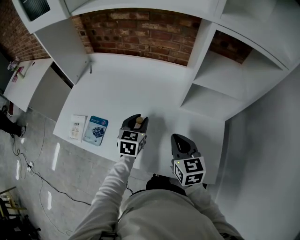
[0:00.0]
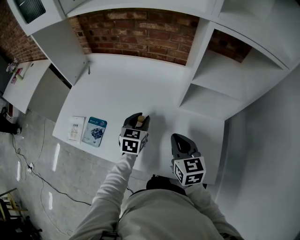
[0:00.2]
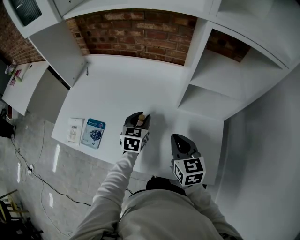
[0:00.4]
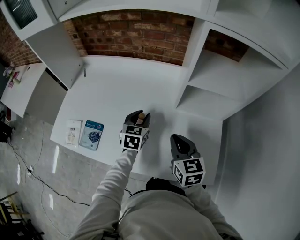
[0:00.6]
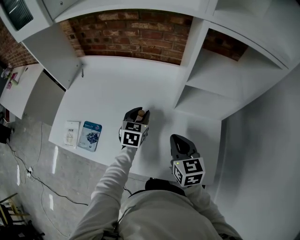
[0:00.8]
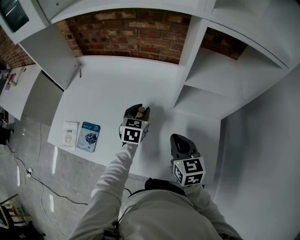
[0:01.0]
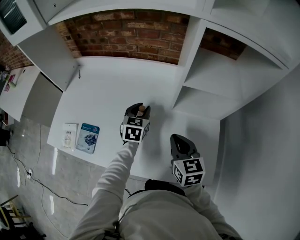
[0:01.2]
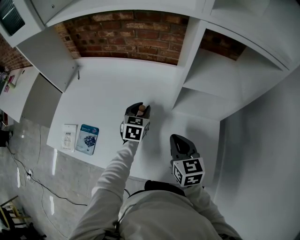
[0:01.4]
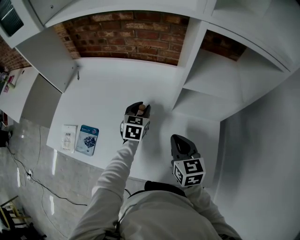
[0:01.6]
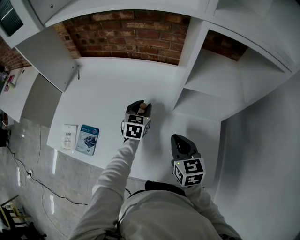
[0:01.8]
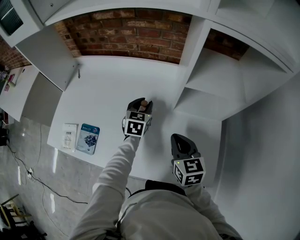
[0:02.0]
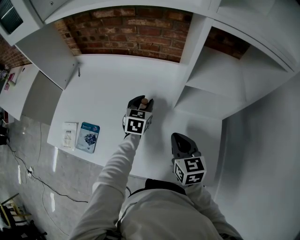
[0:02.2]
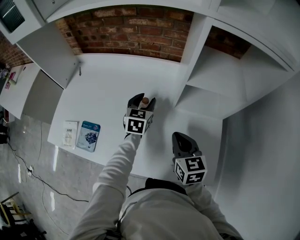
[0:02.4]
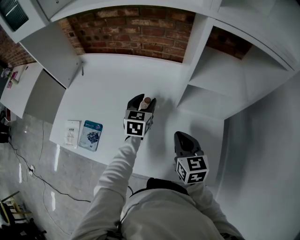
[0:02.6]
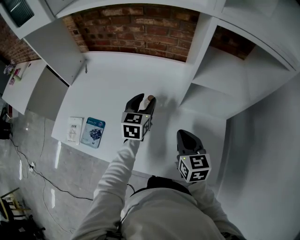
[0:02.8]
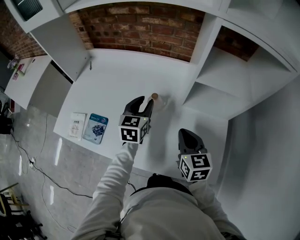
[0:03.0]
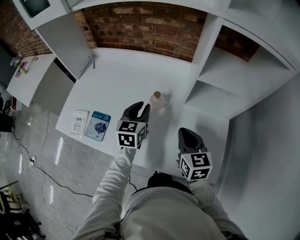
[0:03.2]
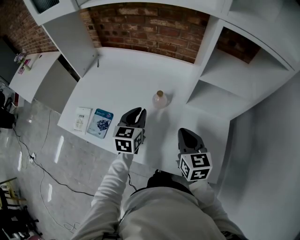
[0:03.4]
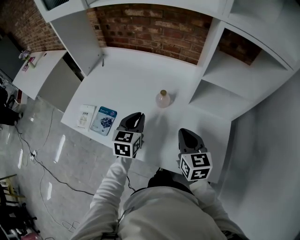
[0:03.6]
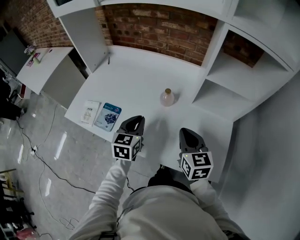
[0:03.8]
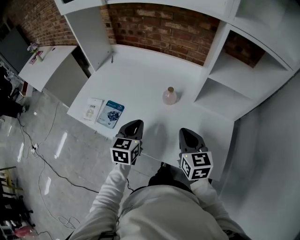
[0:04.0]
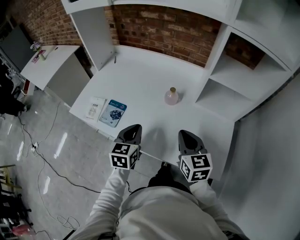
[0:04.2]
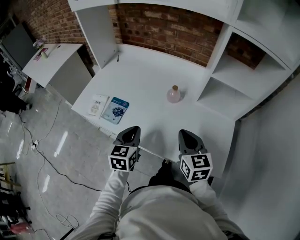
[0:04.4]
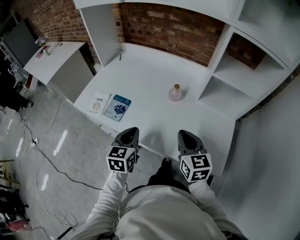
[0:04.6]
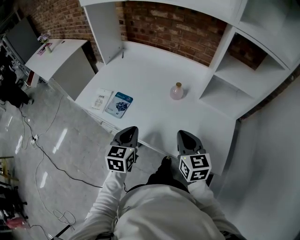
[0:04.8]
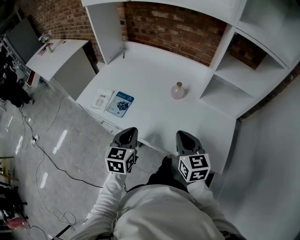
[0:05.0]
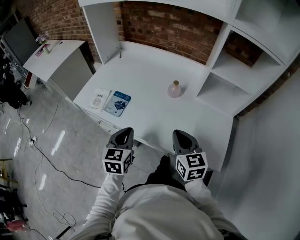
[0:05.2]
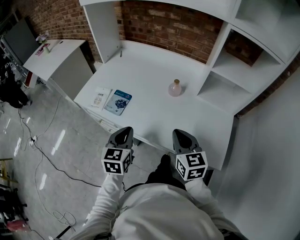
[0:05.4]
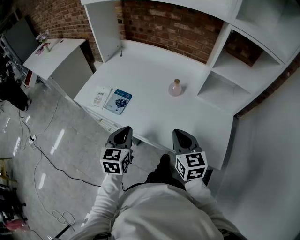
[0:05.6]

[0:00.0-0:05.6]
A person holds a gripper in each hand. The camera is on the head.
0:00.0 to 0:01.4: The left gripper goes roughly 10 cm forward and to the right.
0:01.4 to 0:02.8: The left gripper goes roughly 5 cm upward.
0:02.8 to 0:04.2: The left gripper goes some 25 cm backward and to the left, and closes its fingers, while the right gripper shifts some 10 cm backward and to the left.
0:04.2 to 0:05.6: The two grippers go about 10 cm backward and to the left.

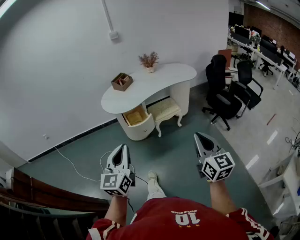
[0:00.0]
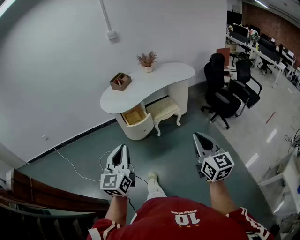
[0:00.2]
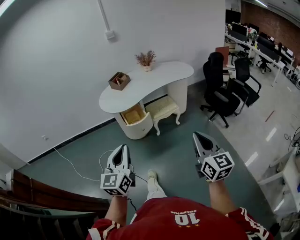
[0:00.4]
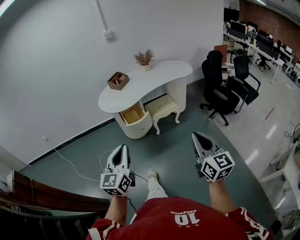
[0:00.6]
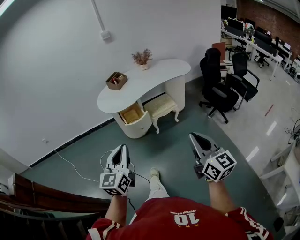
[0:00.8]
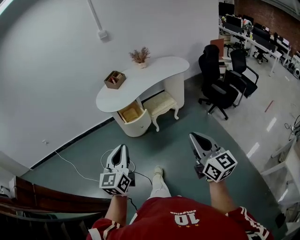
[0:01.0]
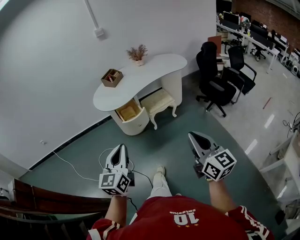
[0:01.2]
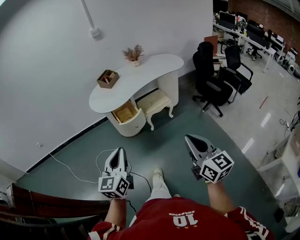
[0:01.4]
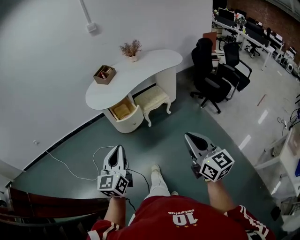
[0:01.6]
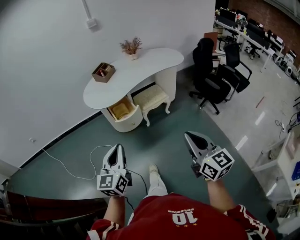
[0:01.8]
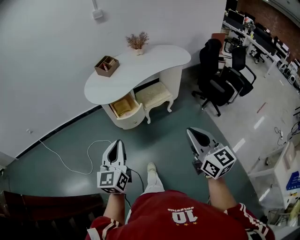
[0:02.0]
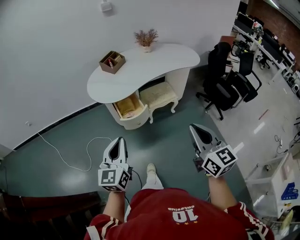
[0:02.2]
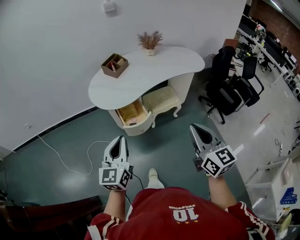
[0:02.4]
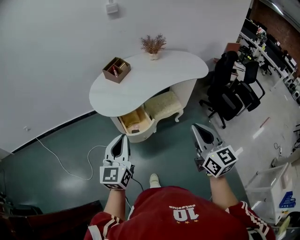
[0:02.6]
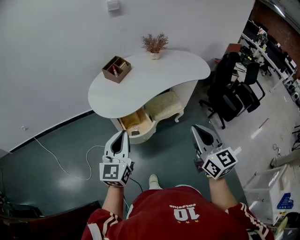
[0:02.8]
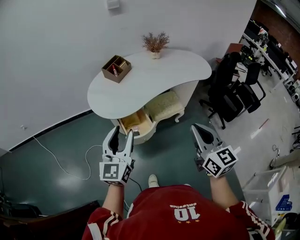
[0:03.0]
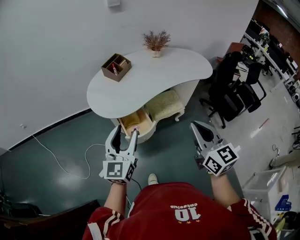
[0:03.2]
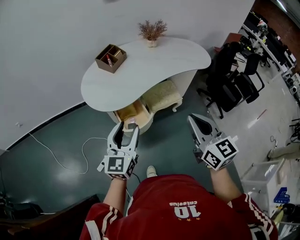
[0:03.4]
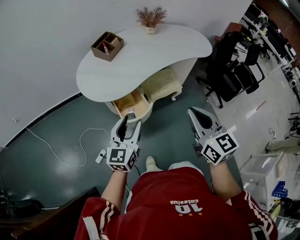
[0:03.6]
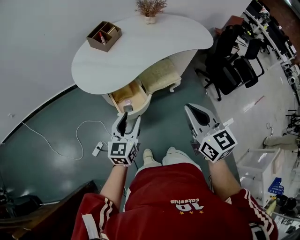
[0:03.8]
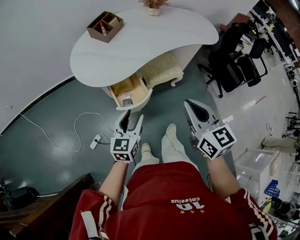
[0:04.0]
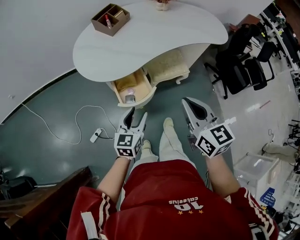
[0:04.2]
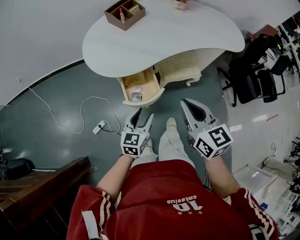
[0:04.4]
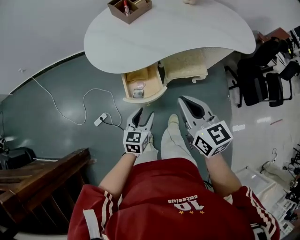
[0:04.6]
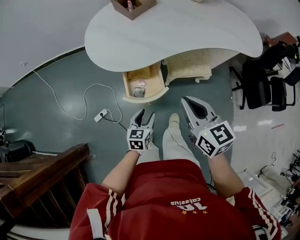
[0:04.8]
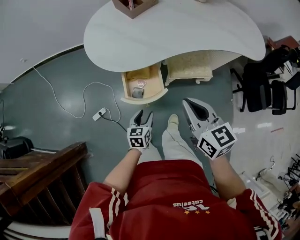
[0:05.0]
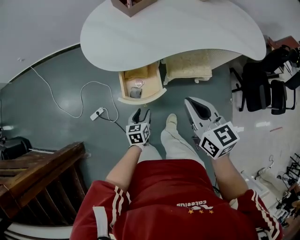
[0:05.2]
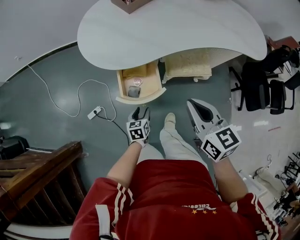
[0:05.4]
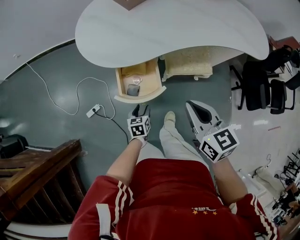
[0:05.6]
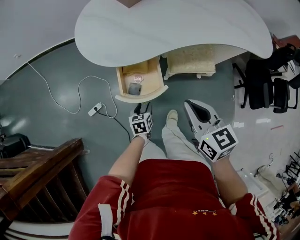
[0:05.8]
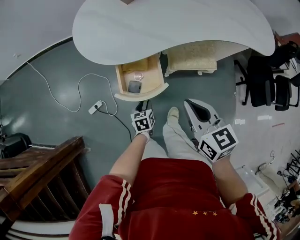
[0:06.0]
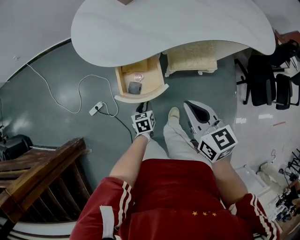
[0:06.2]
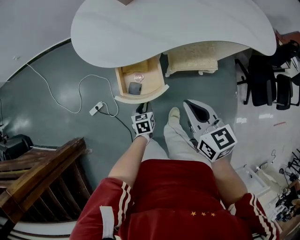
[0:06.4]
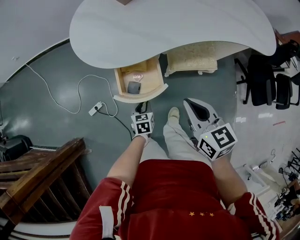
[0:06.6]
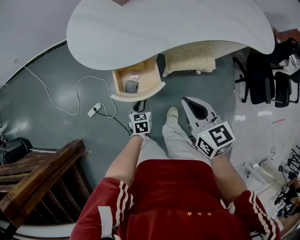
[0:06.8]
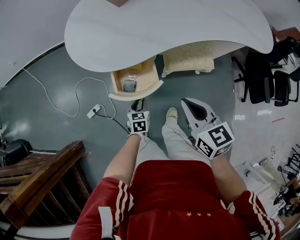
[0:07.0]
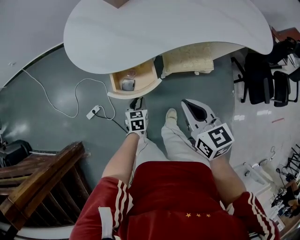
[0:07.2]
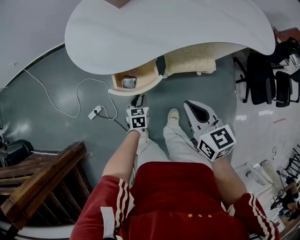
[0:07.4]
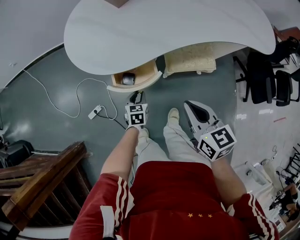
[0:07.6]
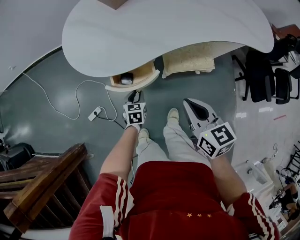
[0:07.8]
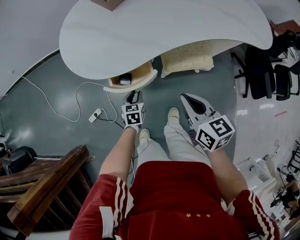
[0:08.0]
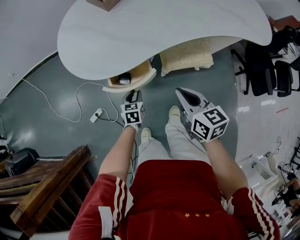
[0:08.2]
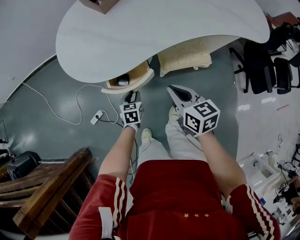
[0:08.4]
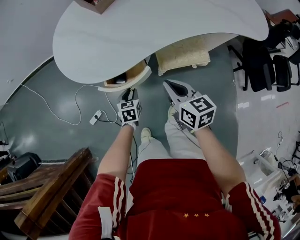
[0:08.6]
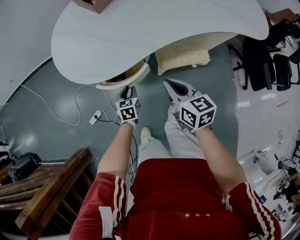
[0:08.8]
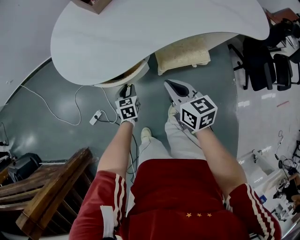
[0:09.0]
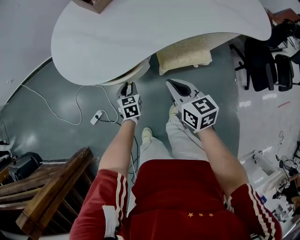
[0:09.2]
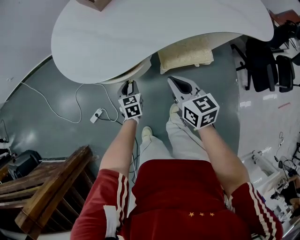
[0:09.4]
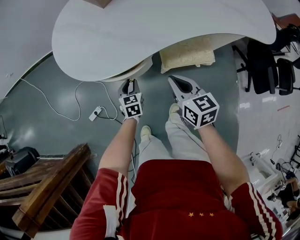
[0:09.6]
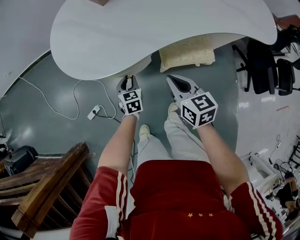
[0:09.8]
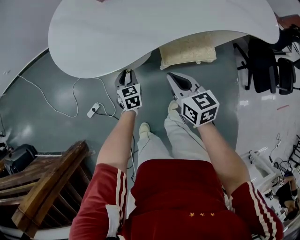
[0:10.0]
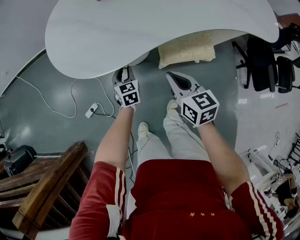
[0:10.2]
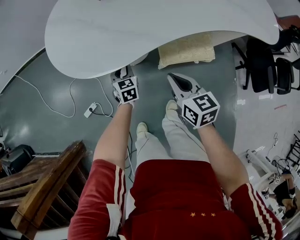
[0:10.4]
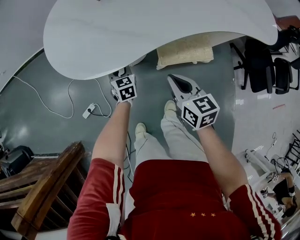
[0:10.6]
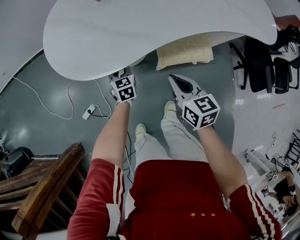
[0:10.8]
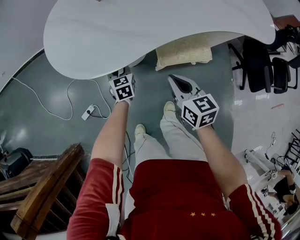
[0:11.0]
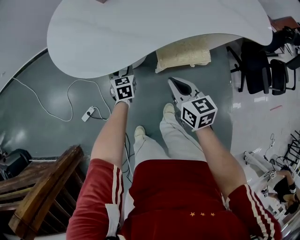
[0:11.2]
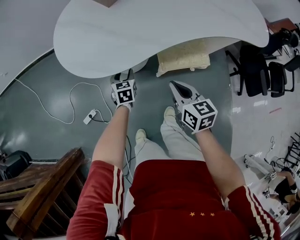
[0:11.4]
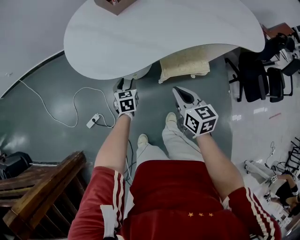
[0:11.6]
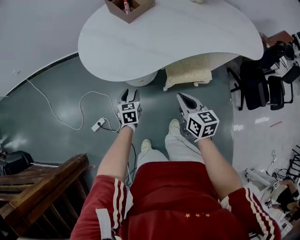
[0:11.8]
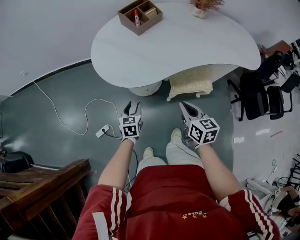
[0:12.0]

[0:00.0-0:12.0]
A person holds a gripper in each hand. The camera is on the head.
0:00.0 to 0:01.6: The left gripper ends up approximately 5 cm from where it was.
0:01.6 to 0:03.0: The grippers both shift forward by some 35 cm. The left gripper opens.
0:03.0 to 0:04.4: The right gripper shifts about 20 cm downward and forward, while the left gripper heads downward, covering roughly 30 cm, and swivels approximately 30 degrees.
0:04.4 to 0:06.0: The right gripper shifts some 15 cm downward and forward. Meanwhile the left gripper is displaced downward by about 25 cm, and turns by roughly 40 degrees.
0:06.0 to 0:07.6: The left gripper heads forward, covering some 10 cm.
0:07.6 to 0:09.0: The right gripper shifts approximately 10 cm forward and downward. The left gripper travels forward by some 5 cm.
0:09.0 to 0:10.4: The left gripper heads forward, covering approximately 10 cm.
0:10.4 to 0:12.0: The left gripper heads upward, backward and to the left, covering about 20 cm. The right gripper goes some 10 cm upward and backward.

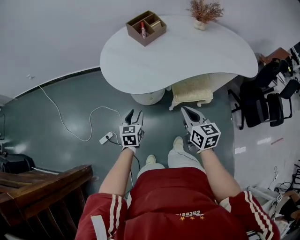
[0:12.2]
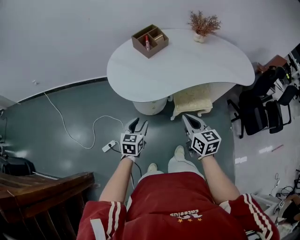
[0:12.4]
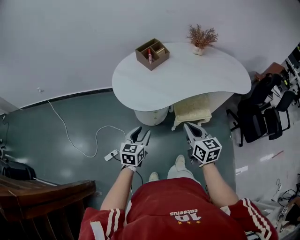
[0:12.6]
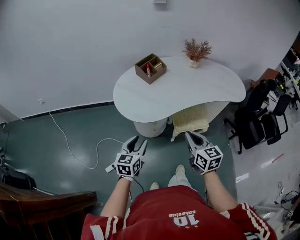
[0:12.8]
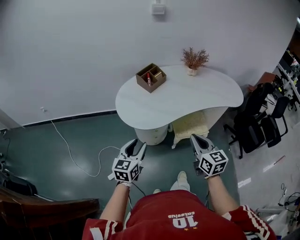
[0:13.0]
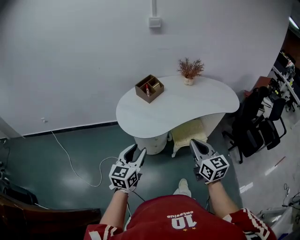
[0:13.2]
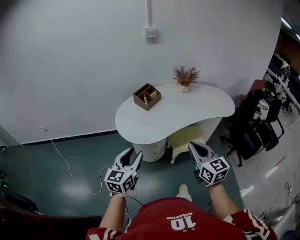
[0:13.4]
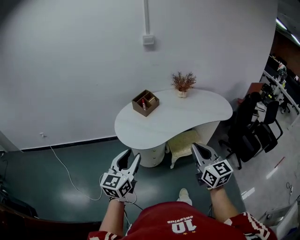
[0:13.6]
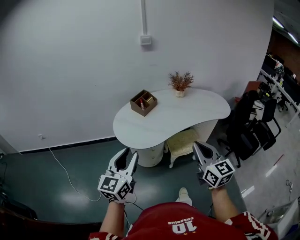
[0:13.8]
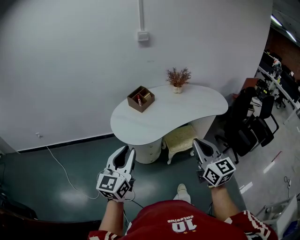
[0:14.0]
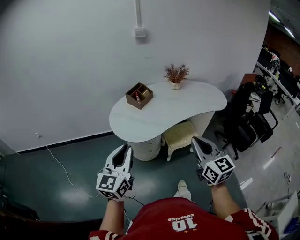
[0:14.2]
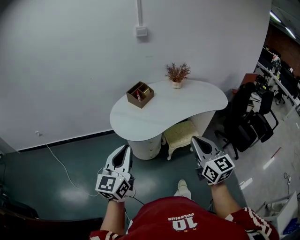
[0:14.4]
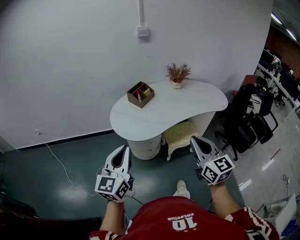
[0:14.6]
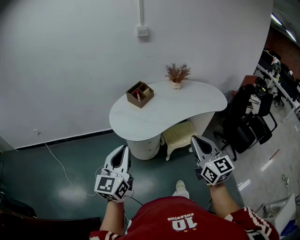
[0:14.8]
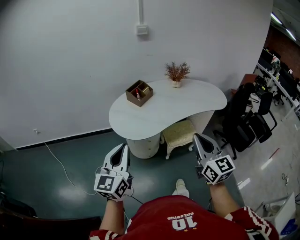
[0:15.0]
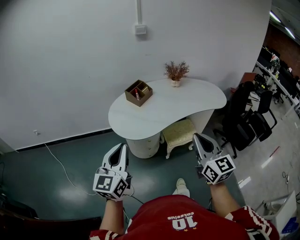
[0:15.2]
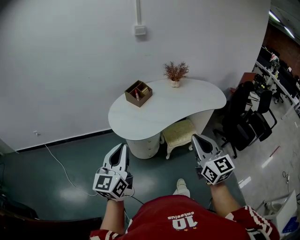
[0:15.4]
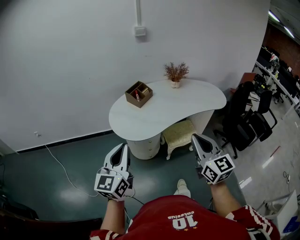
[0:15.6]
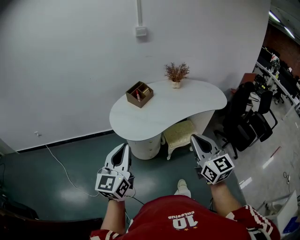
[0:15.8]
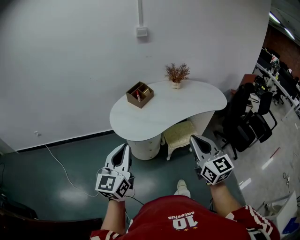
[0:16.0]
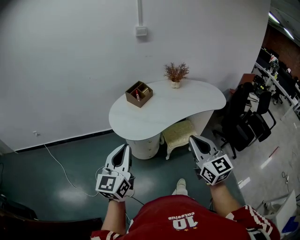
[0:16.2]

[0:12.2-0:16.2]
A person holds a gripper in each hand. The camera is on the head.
0:12.2 to 0:13.6: The right gripper goes about 30 cm upward and backward, and rotates roughly 30 degrees, while the left gripper moves upward, about 35 cm, and tilts its fingers about 30 degrees upward.
0:13.6 to 0:14.8: The left gripper shifts by roughly 5 cm, and closes up.
0:14.8 to 0:16.2: The grippers make only small movements.

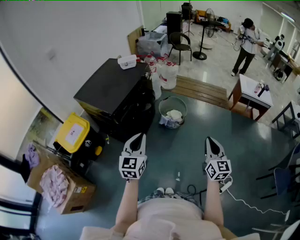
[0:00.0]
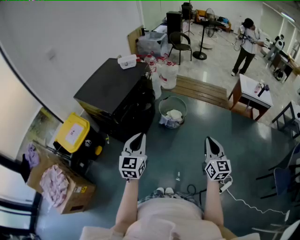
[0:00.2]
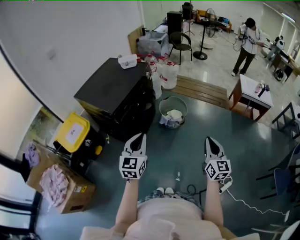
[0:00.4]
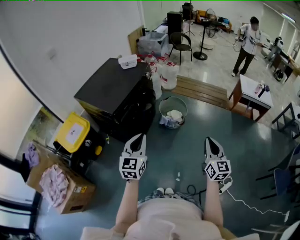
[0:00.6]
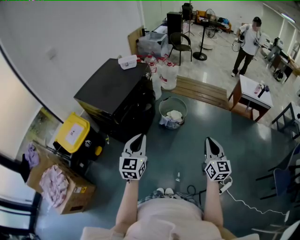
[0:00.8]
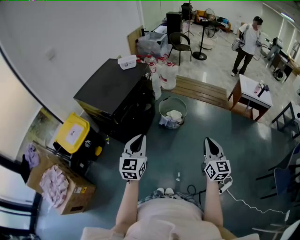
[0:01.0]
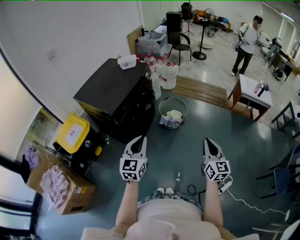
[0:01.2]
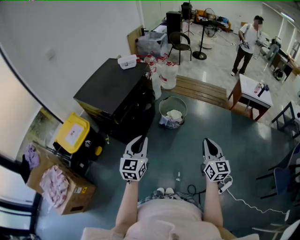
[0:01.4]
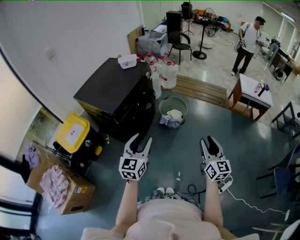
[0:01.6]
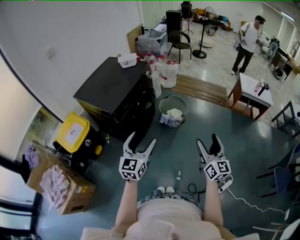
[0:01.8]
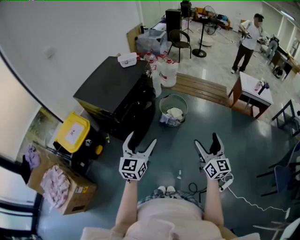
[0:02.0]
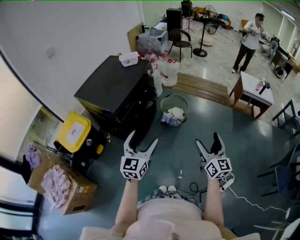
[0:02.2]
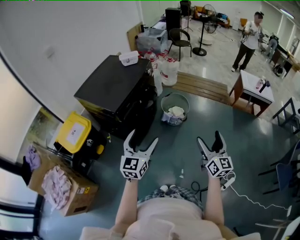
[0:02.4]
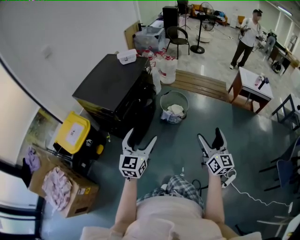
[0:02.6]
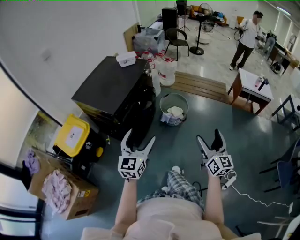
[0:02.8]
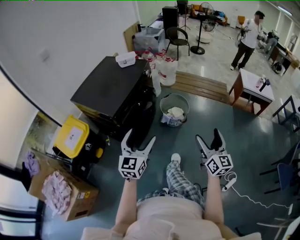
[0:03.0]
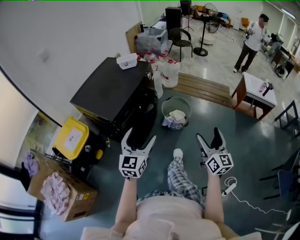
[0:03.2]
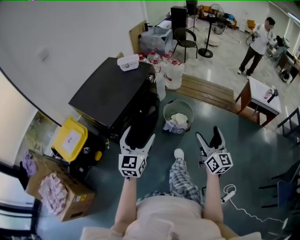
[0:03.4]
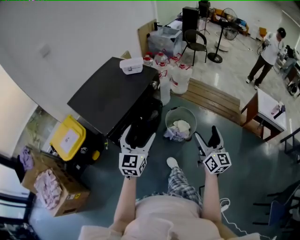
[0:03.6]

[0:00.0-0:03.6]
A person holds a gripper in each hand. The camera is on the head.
0:00.0 to 0:01.8: The right gripper opens up, while the left gripper opens.
0:01.8 to 0:03.6: Both grippers travel together forward, roughly 25 cm.
